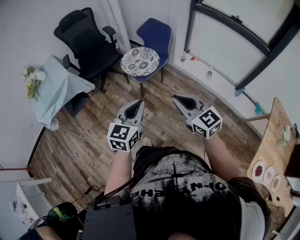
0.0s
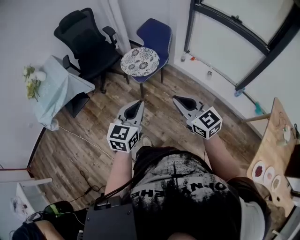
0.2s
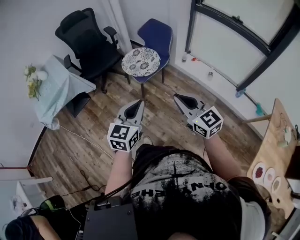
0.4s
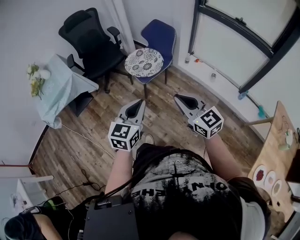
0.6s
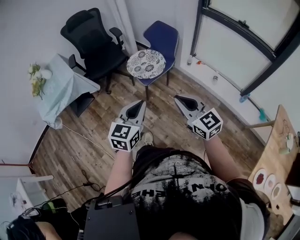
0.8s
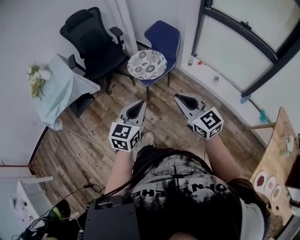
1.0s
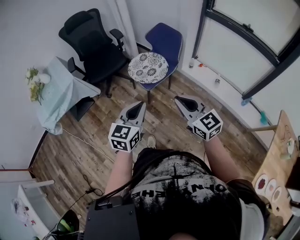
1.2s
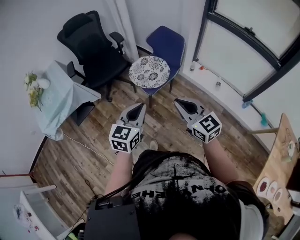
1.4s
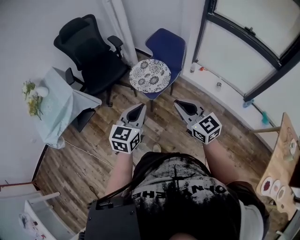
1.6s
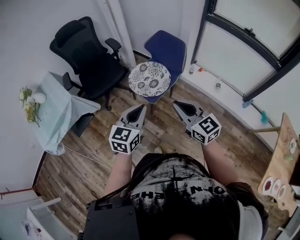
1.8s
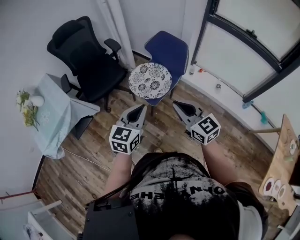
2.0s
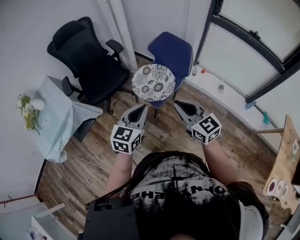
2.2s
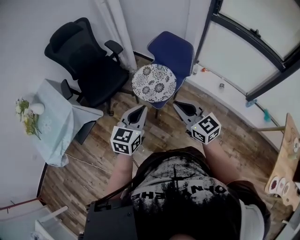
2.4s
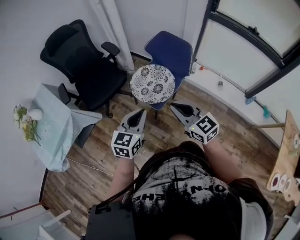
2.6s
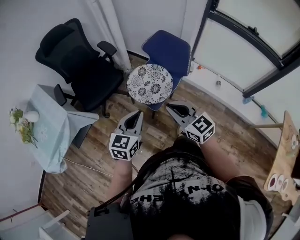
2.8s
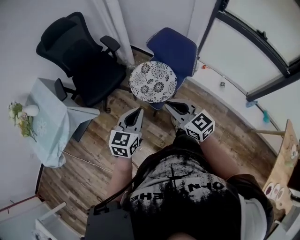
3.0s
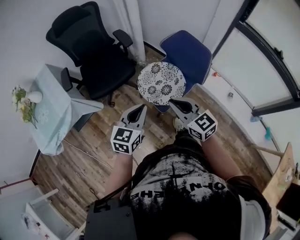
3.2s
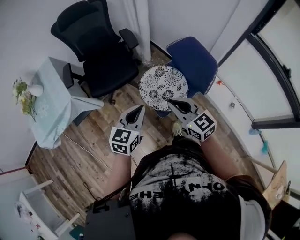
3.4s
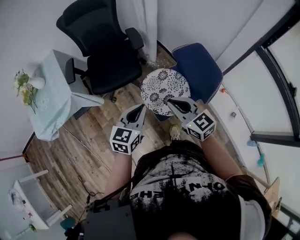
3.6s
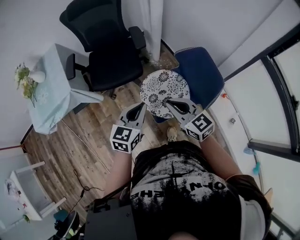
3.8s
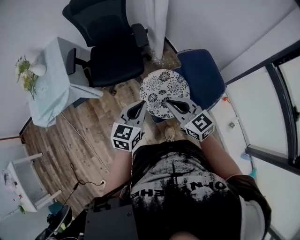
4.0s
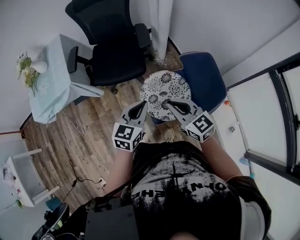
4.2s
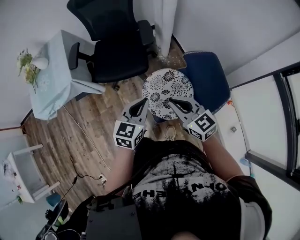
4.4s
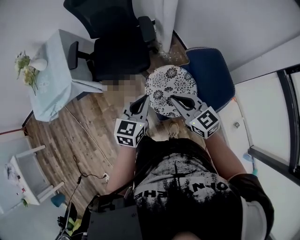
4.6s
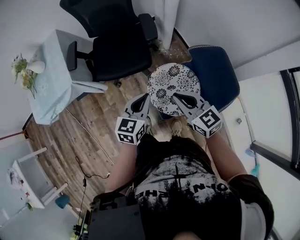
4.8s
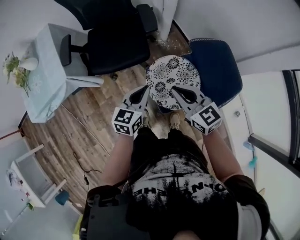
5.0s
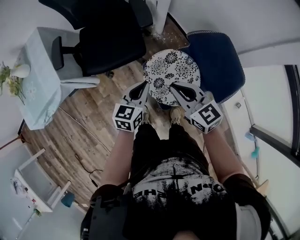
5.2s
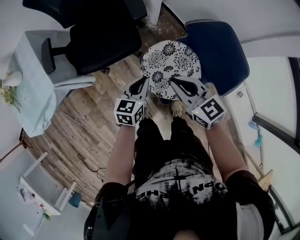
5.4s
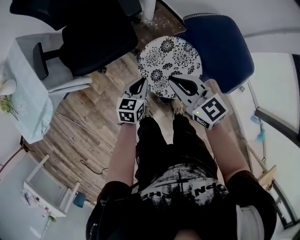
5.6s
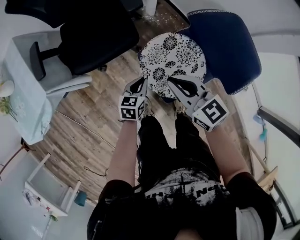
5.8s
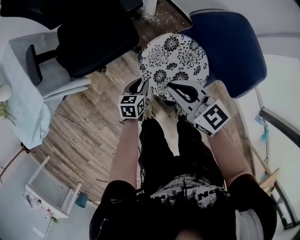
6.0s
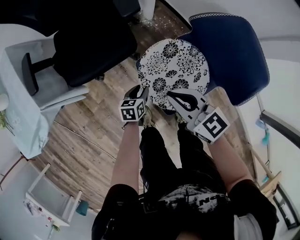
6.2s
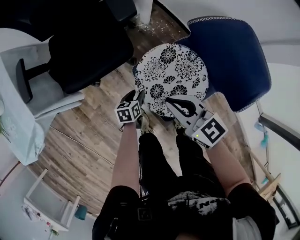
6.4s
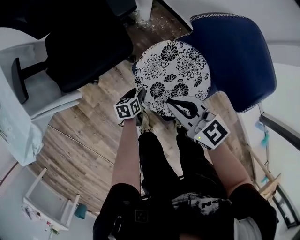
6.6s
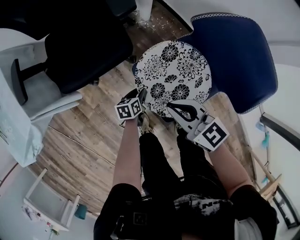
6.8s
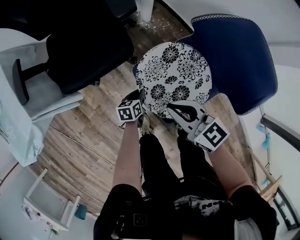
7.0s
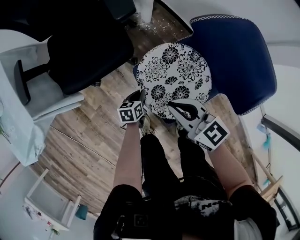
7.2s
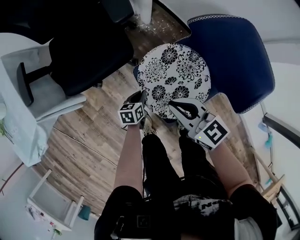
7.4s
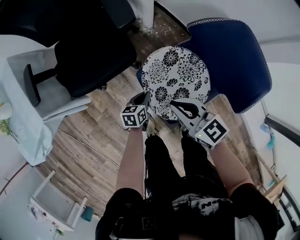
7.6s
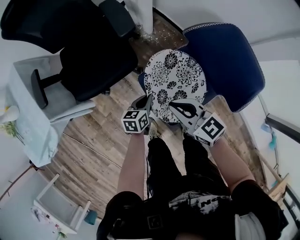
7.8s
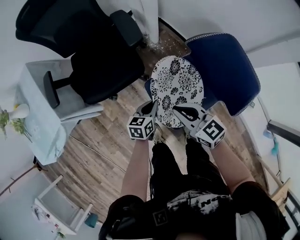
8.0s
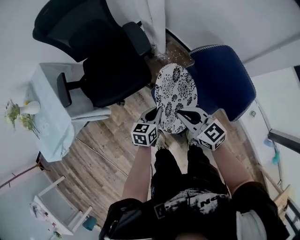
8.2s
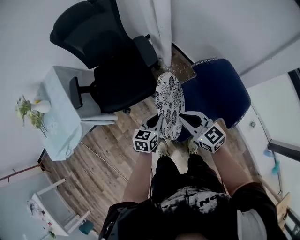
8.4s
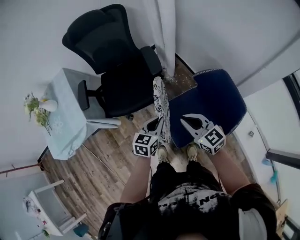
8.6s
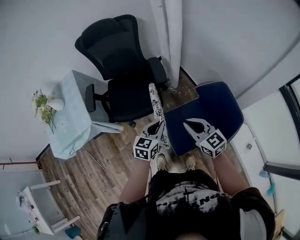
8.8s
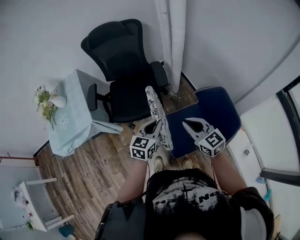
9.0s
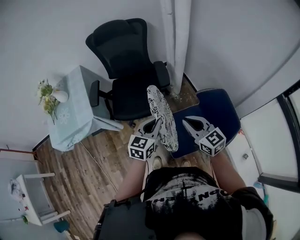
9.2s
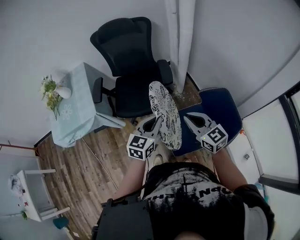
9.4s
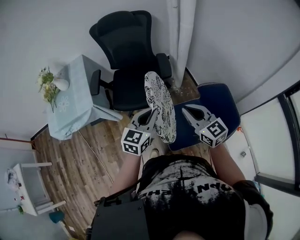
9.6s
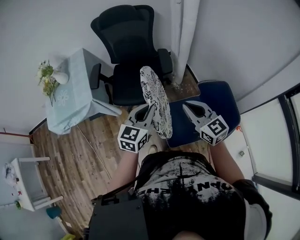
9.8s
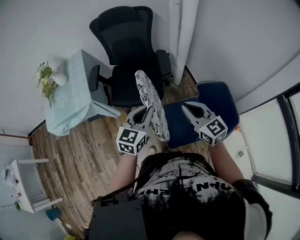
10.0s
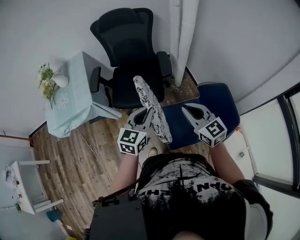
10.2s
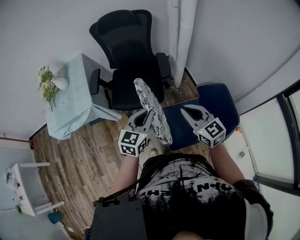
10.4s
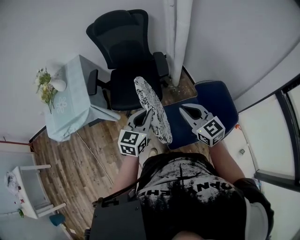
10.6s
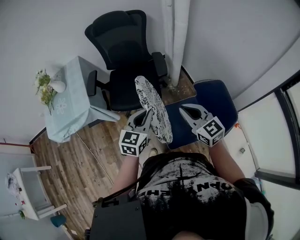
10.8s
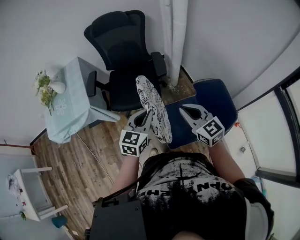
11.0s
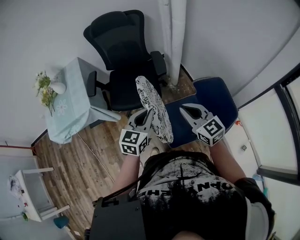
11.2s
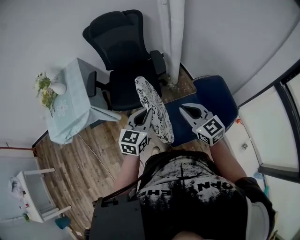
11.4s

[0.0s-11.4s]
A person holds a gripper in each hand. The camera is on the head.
0.0s to 1.4s: The right gripper is displaced forward by about 15 cm. Meanwhile the left gripper is displaced forward and to the left by about 15 cm.
1.4s to 2.8s: The two grippers go some 20 cm forward and to the left.
2.8s to 4.2s: The right gripper changes place by about 25 cm, and turns by approximately 30 degrees; the left gripper ends up approximately 25 cm from where it was, and changes its angle by about 30 degrees.
4.2s to 5.6s: The right gripper is displaced forward and downward by about 15 cm. Meanwhile the left gripper is displaced downward and forward by about 25 cm.
5.6s to 7.2s: The left gripper moves downward, about 25 cm, changes its angle by about 20 degrees, and opens and closes again. The right gripper moves downward, roughly 10 cm.
7.2s to 8.6s: The right gripper shifts about 15 cm upward. The left gripper moves upward, some 40 cm, and changes its angle by roughly 30 degrees.
8.6s to 10.0s: The right gripper heads upward, covering some 10 cm, while the left gripper goes some 15 cm upward, and rotates approximately 20 degrees.
10.0s to 11.4s: The grippers stay close to where they were, moving slightly.

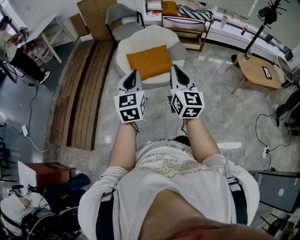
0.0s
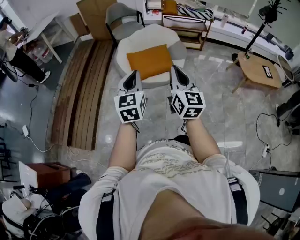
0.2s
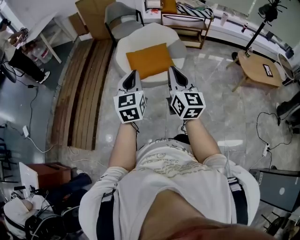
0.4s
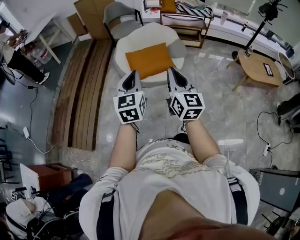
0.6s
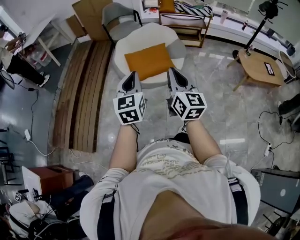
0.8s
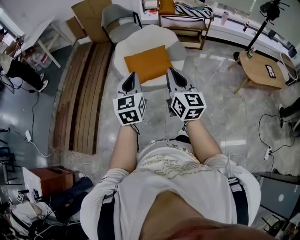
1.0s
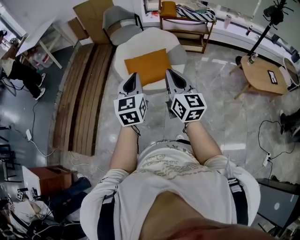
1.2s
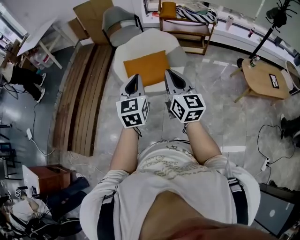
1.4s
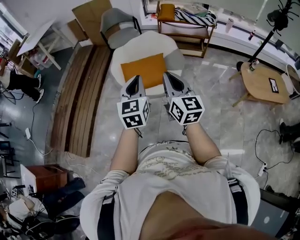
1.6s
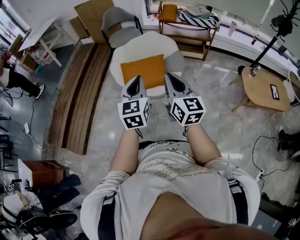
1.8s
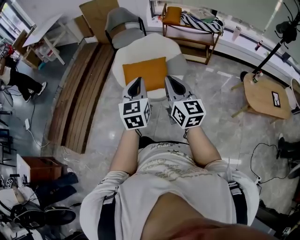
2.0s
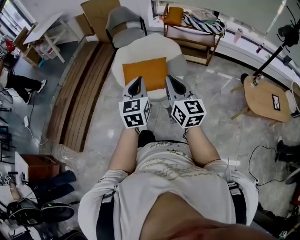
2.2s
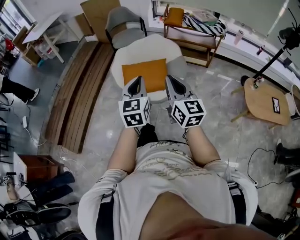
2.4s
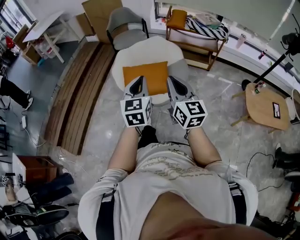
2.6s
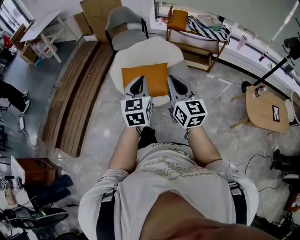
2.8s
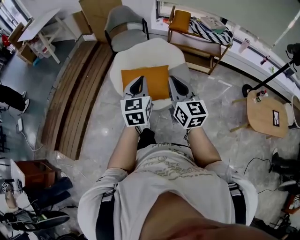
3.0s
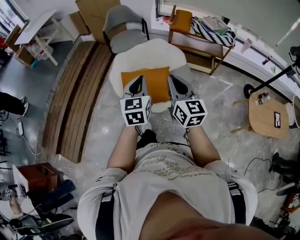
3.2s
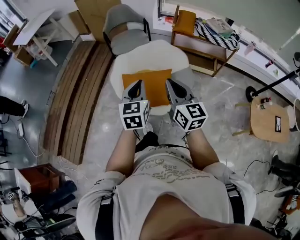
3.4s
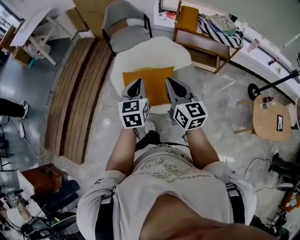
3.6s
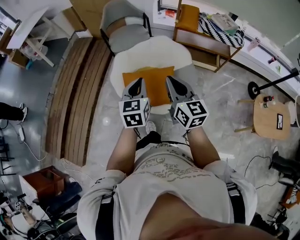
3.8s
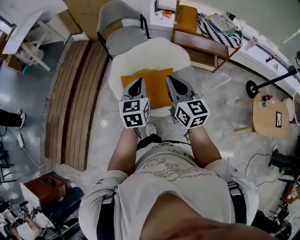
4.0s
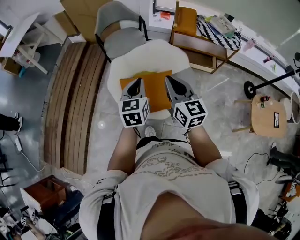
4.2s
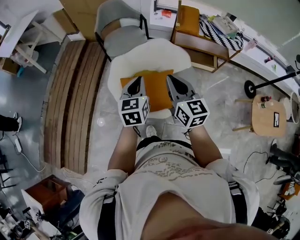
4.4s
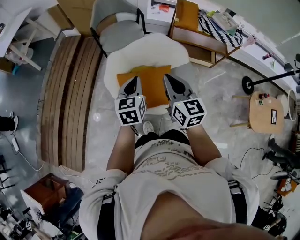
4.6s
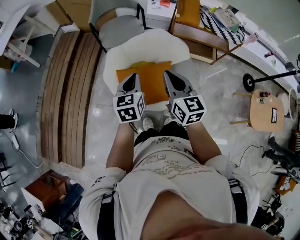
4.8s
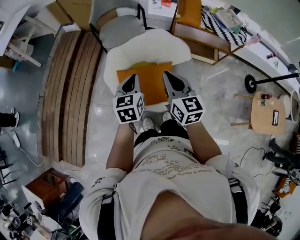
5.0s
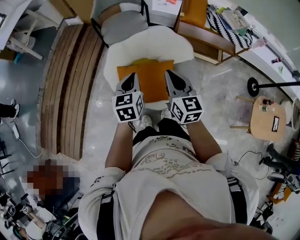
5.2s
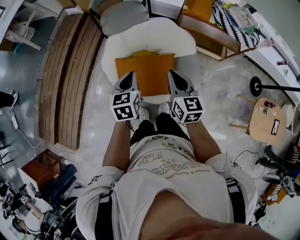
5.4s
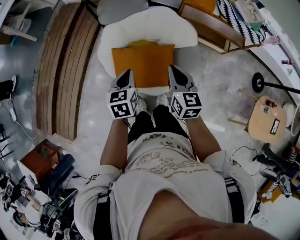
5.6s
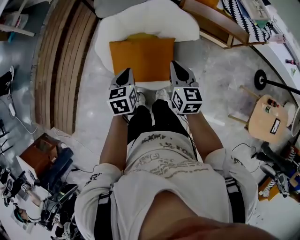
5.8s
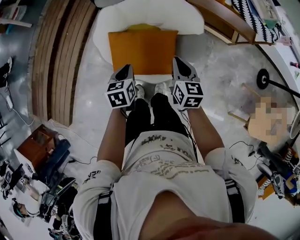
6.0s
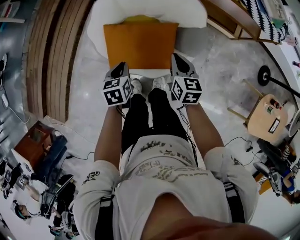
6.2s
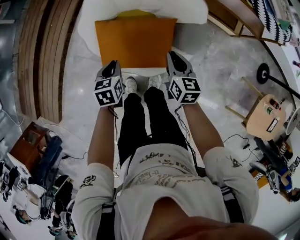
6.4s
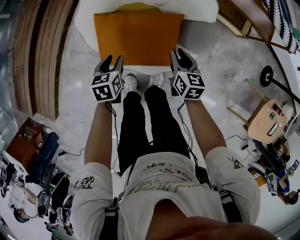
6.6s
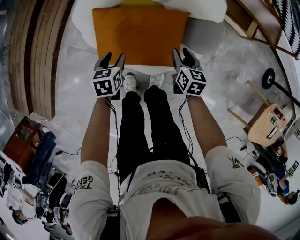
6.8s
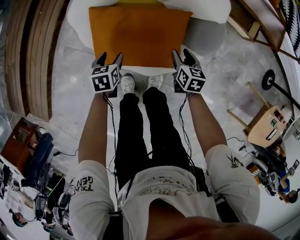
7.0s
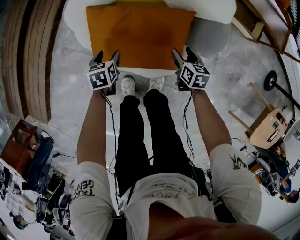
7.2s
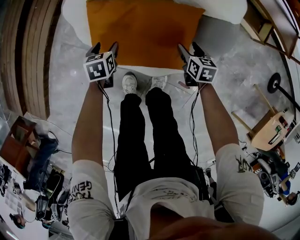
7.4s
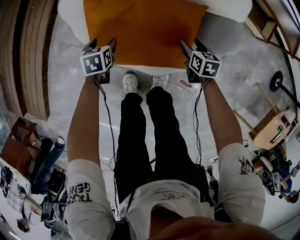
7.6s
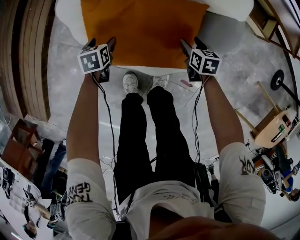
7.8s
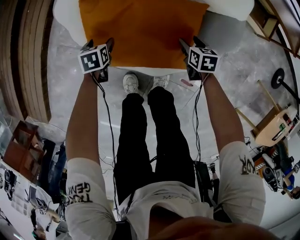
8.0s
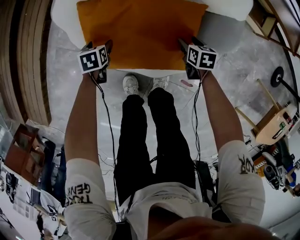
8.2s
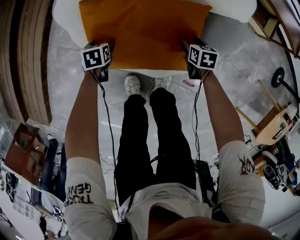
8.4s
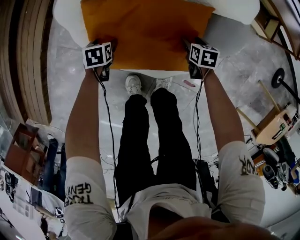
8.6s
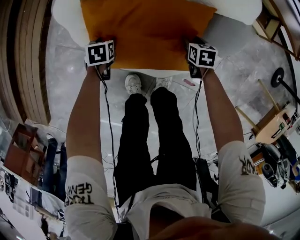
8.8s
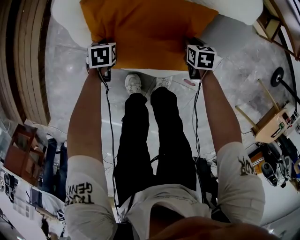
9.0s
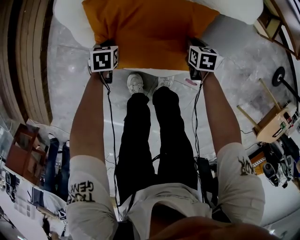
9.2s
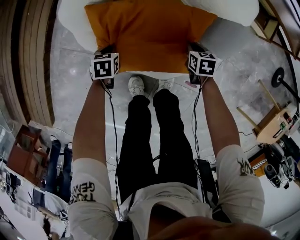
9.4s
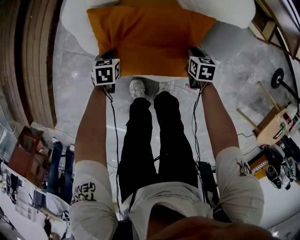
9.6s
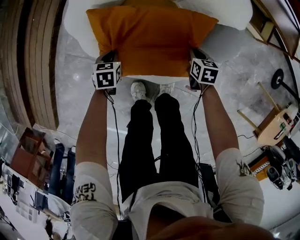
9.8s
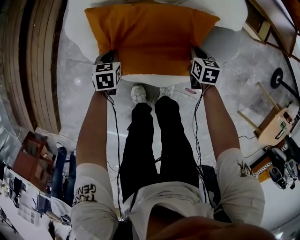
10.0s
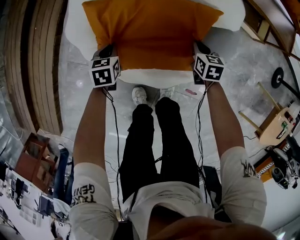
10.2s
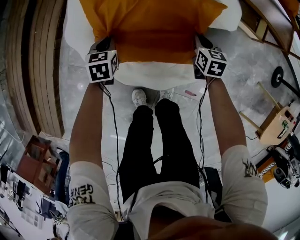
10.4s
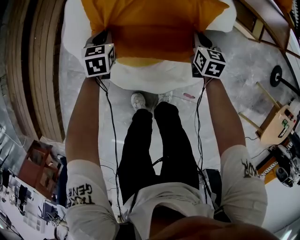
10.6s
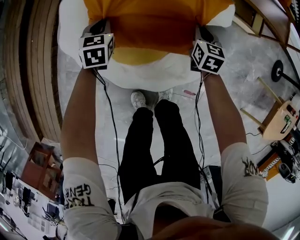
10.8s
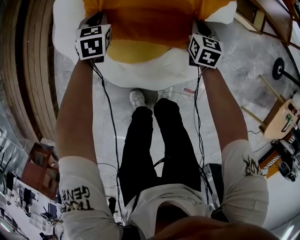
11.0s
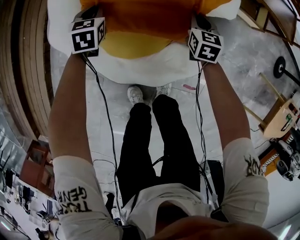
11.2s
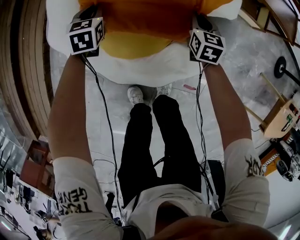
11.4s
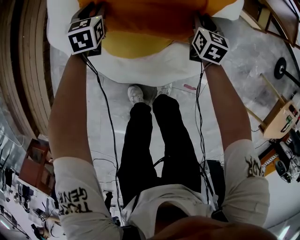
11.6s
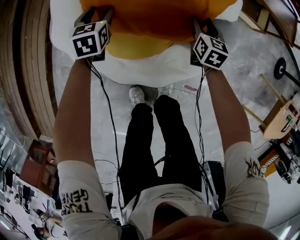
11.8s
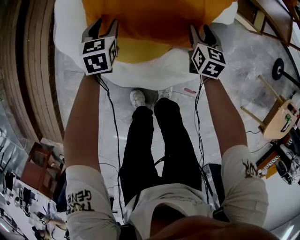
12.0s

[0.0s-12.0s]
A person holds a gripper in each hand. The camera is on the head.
0.0s to 1.6s: The left gripper shifts some 20 cm to the right and forward; the right gripper goes some 20 cm forward and to the right.
1.6s to 3.0s: Both grippers travel together forward, some 20 cm.
3.0s to 4.4s: Both grippers move forward, some 25 cm.
4.4s to 6.0s: The left gripper moves downward, some 25 cm, and turns by roughly 30 degrees; the right gripper is displaced downward and to the right by about 30 cm, and turns by approximately 20 degrees.
6.0s to 7.6s: The grippers both shift downward by roughly 40 cm. The left gripper opens up; the right gripper turns by roughly 30 degrees, and opens.
7.6s to 9.0s: Both grippers travel together downward, roughly 5 cm. The right gripper closes. Meanwhile the left gripper closes.
9.0s to 10.4s: The grippers both shift upward by approximately 15 cm. The right gripper swivels roughly 20 degrees; the left gripper swivels approximately 20 degrees.
10.4s to 12.0s: The left gripper moves forward, about 5 cm, and opens. Meanwhile the right gripper opens its fingers.
